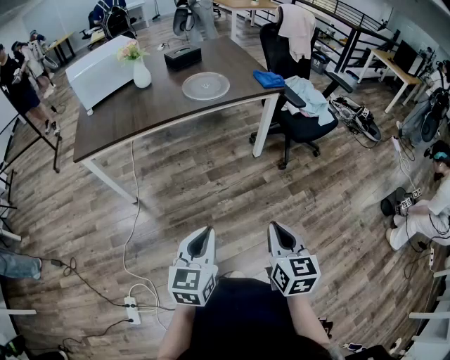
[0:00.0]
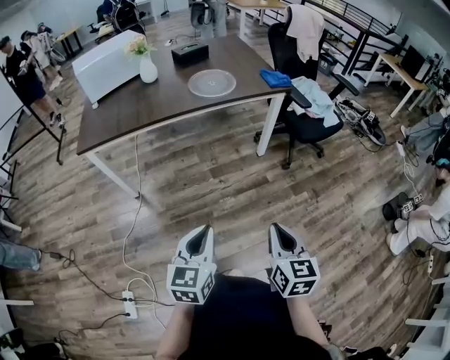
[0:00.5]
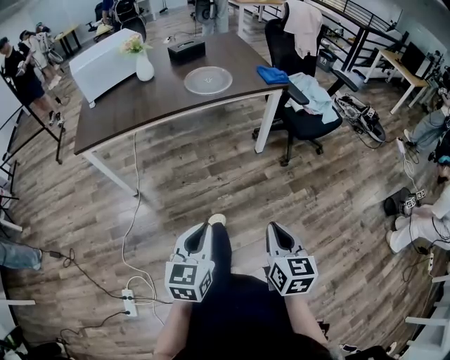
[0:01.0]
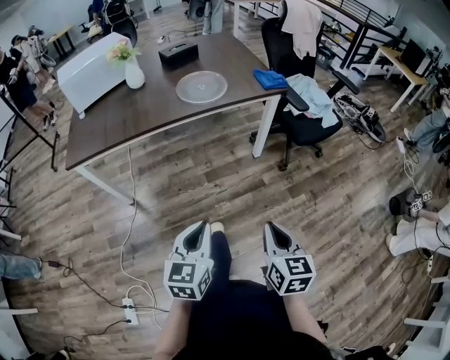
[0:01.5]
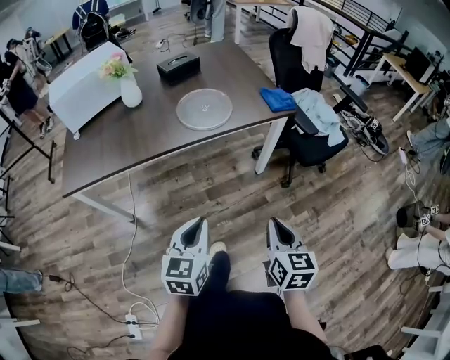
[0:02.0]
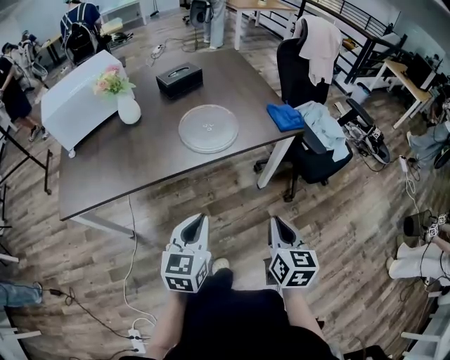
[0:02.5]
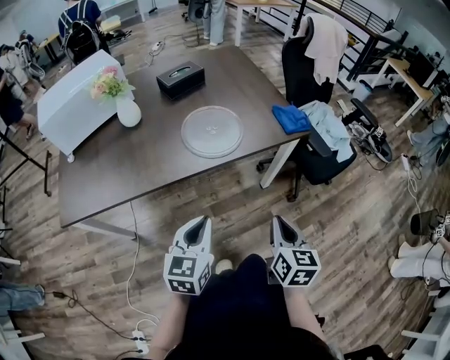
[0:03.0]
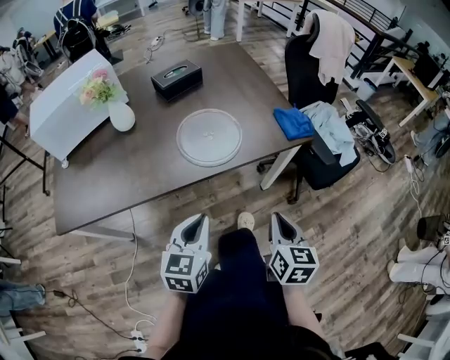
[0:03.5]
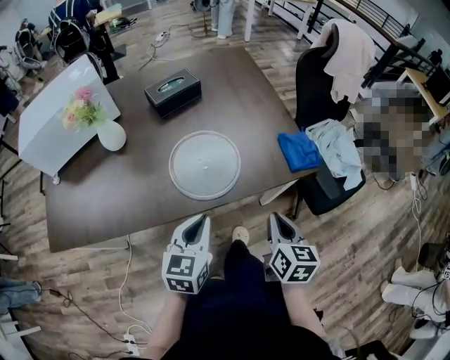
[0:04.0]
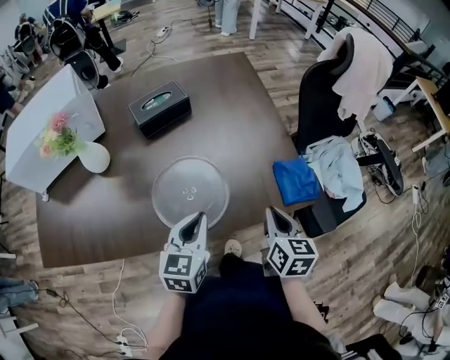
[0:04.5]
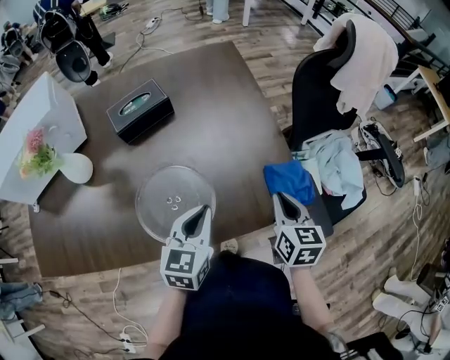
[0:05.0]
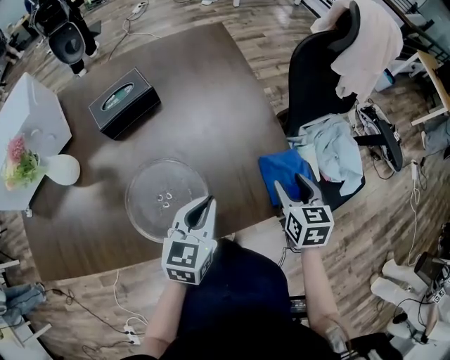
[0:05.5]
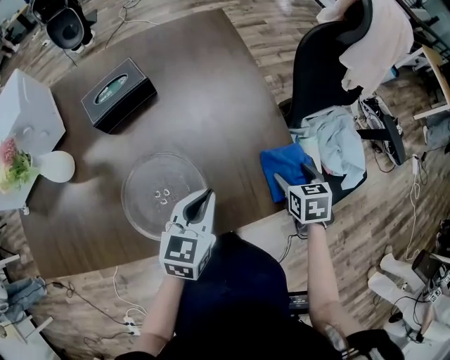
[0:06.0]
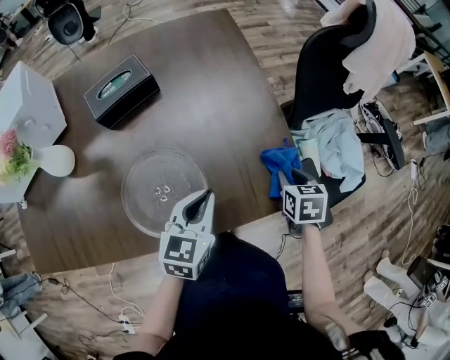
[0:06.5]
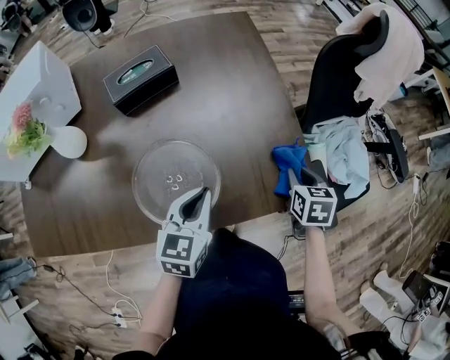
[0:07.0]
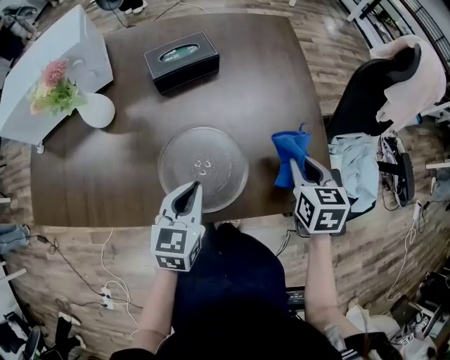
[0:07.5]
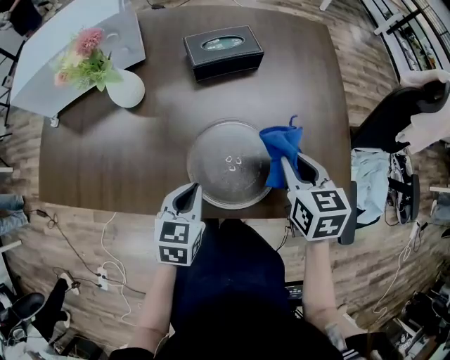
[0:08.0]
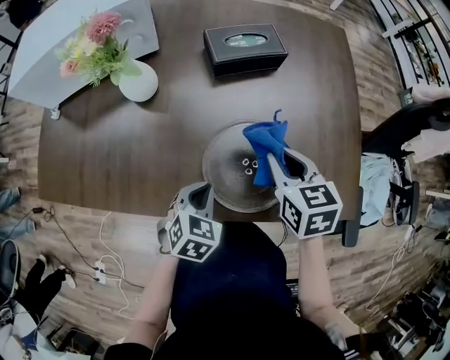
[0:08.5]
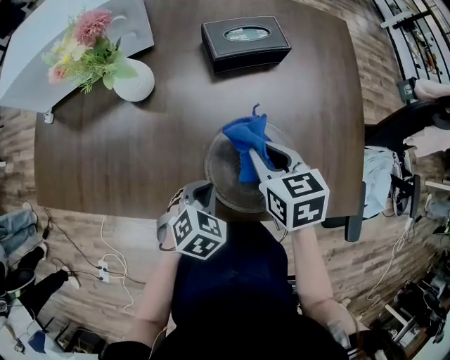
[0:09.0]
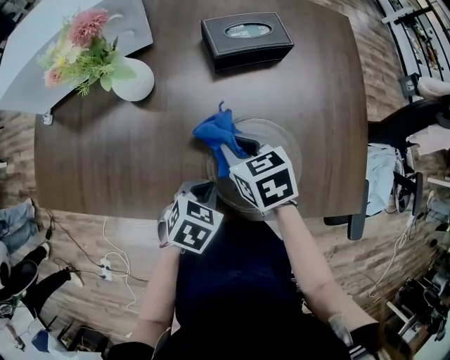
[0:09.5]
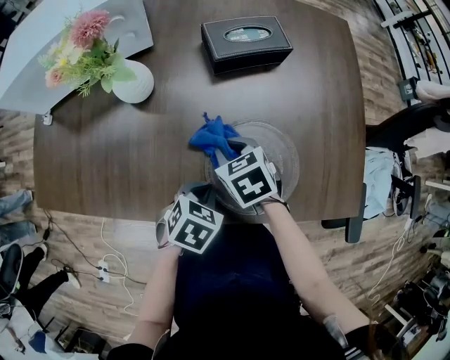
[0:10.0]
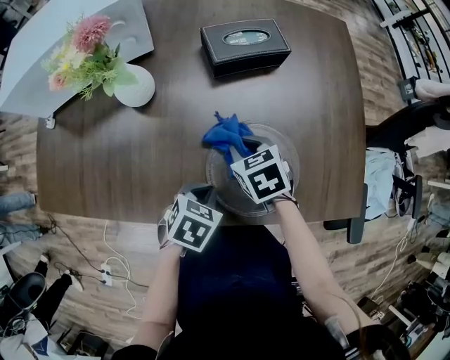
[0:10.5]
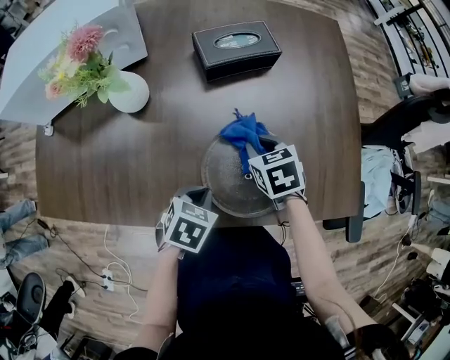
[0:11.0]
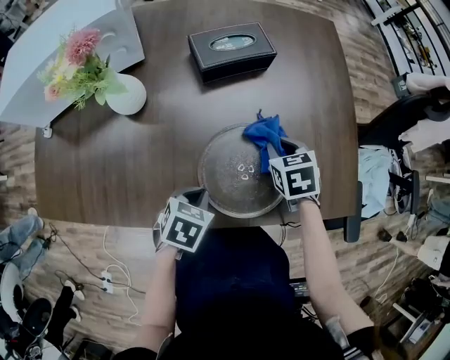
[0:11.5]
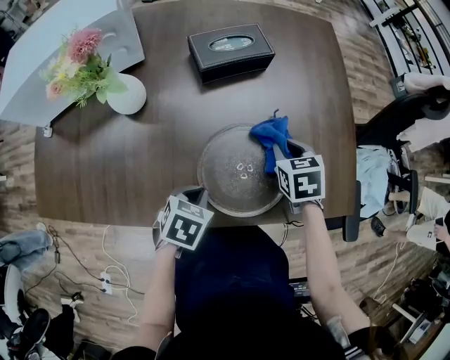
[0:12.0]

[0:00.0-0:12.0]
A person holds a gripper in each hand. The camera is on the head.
0:00.0 to 0:02.0: Both grippers move forward, some 25 cm.
0:02.0 to 0:04.0: Both grippers move forward, some 35 cm.
0:04.0 to 0:06.0: The right gripper goes some 35 cm forward, to the right and downward, changes its angle by roughly 30 degrees, and opens its fingers. The left gripper moves forward and to the right, some 25 cm.
0:06.0 to 0:08.0: The right gripper shifts roughly 30 cm to the left and upward, turns by about 30 degrees, and closes up. The left gripper moves to the left and backward, about 25 cm, and turns by approximately 30 degrees.
0:08.0 to 0:10.0: The right gripper heads to the left and downward, covering roughly 25 cm, and turns by some 30 degrees; the left gripper heads downward, covering approximately 5 cm, and swivels some 30 degrees.
0:10.0 to 0:12.0: The right gripper moves to the right, about 20 cm, and rotates approximately 20 degrees.

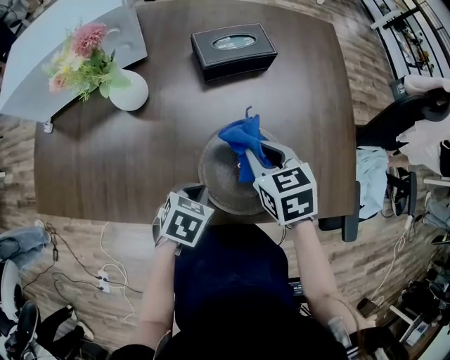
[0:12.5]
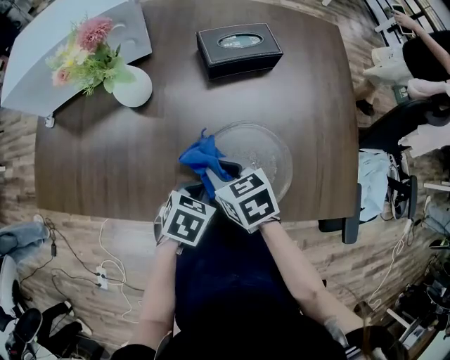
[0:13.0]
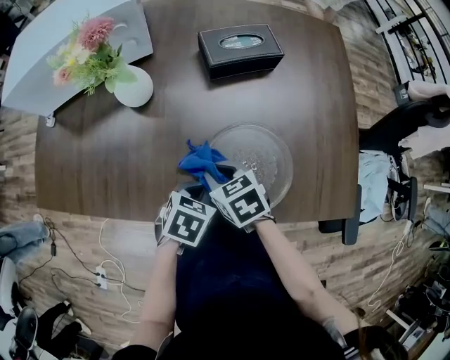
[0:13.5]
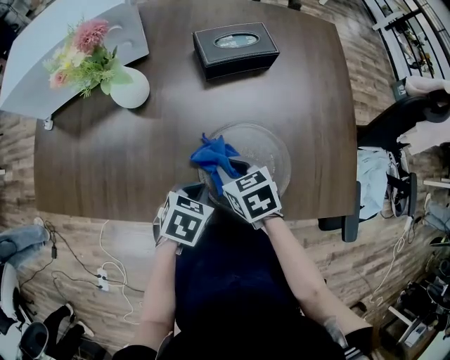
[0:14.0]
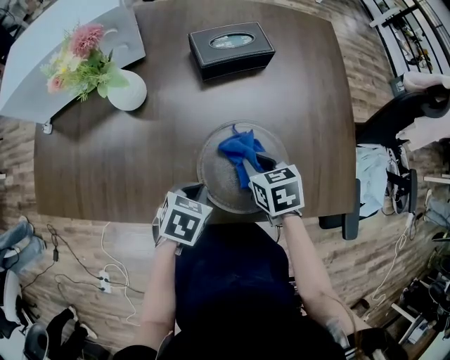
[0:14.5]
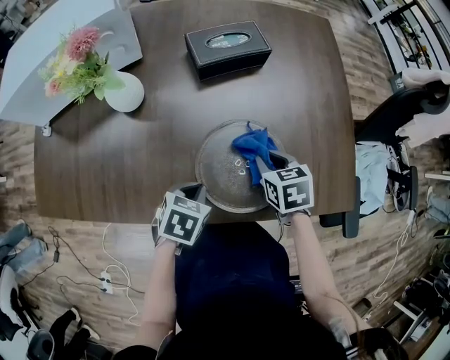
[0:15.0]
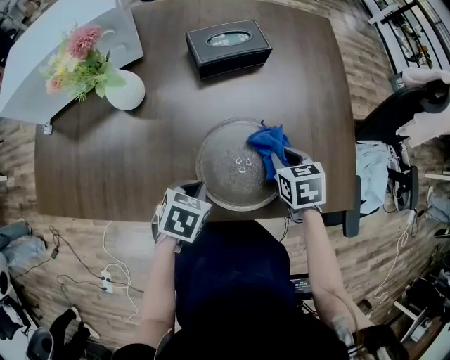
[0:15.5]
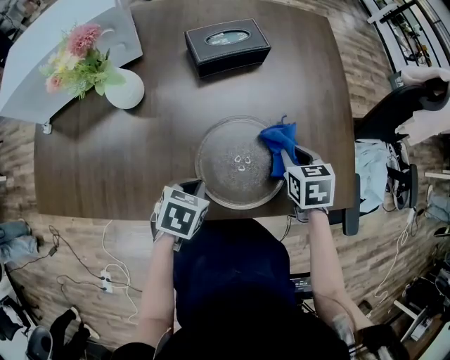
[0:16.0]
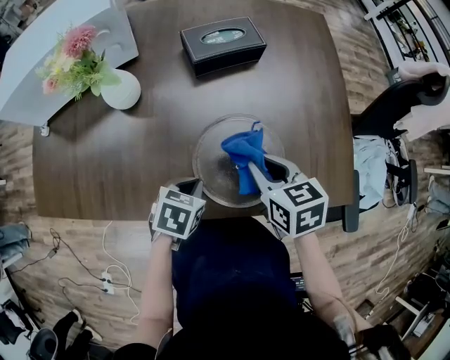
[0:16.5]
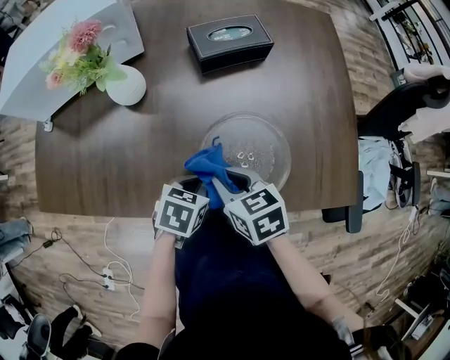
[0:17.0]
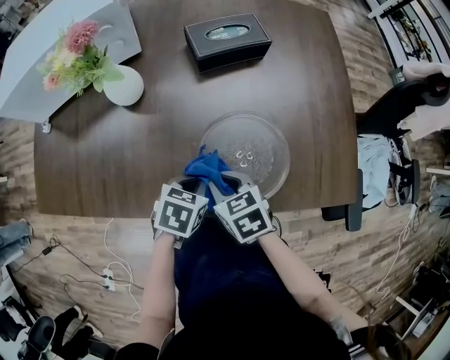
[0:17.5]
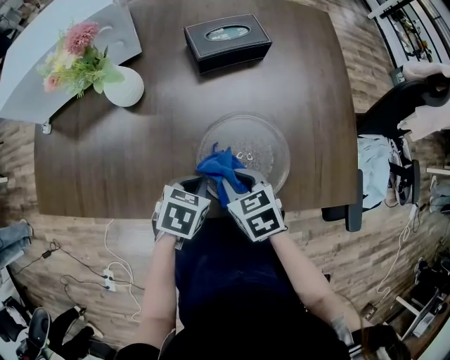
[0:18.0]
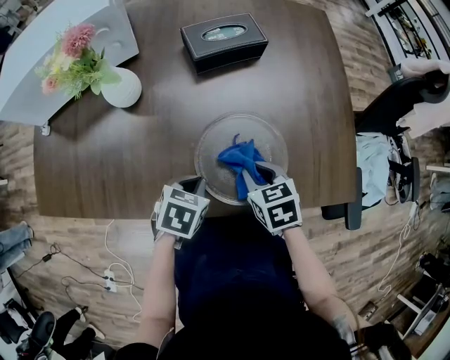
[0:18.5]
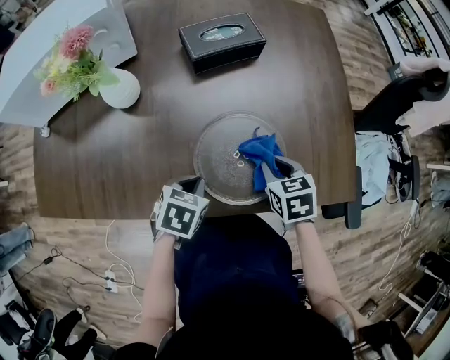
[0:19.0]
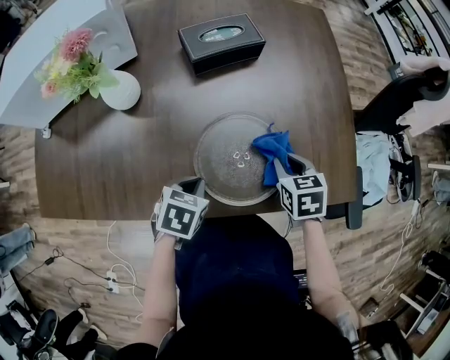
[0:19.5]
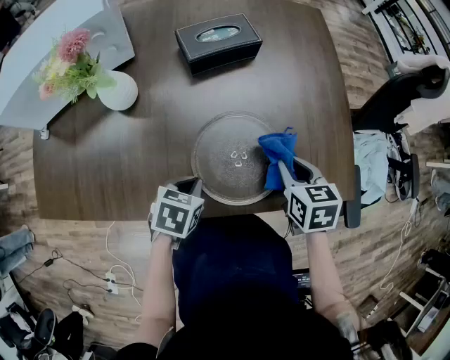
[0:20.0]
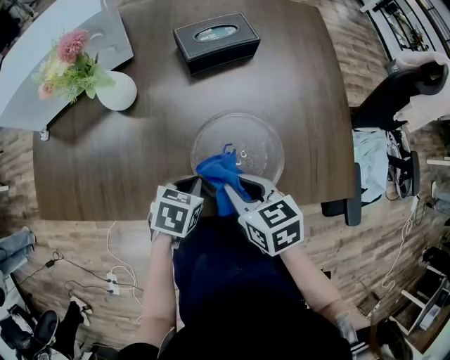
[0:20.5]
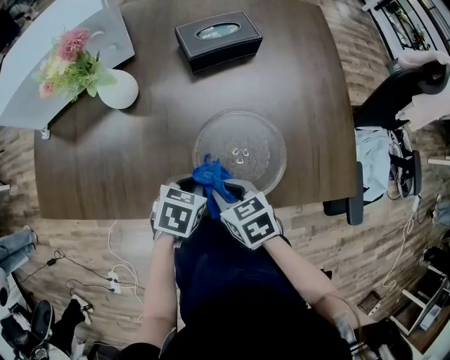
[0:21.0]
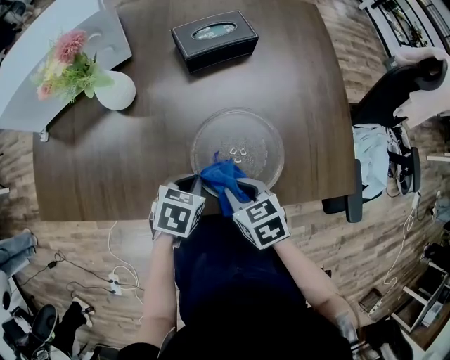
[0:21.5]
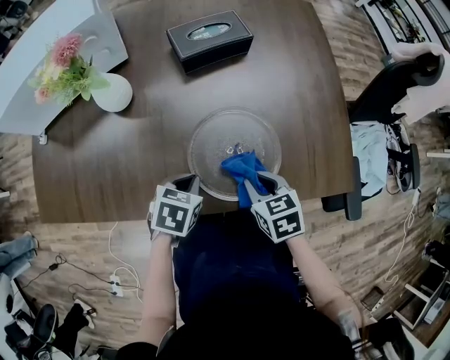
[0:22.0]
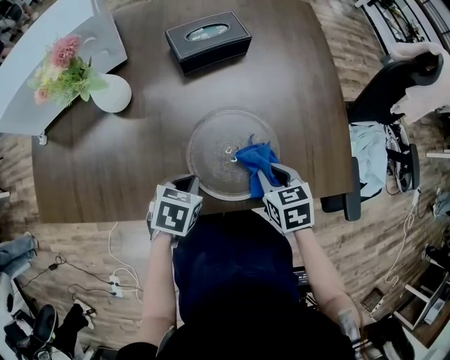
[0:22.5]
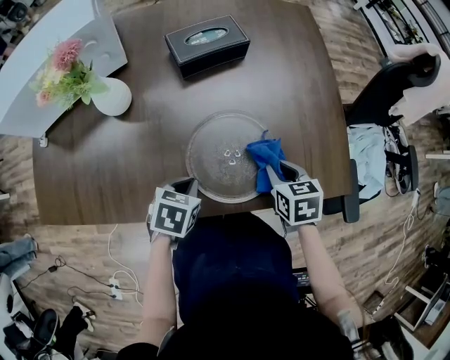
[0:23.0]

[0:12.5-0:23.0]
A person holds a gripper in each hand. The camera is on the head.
0:12.5 to 0:14.5: The right gripper heads downward, covering approximately 5 cm, and travels to the left and back again, some 10 cm each way.
0:14.5 to 0:16.5: The right gripper shifts some 10 cm upward, and moves roughly 10 cm to the right and comes back.
0:16.5 to 0:19.0: The right gripper moves downward, roughly 5 cm, and reaches some 10 cm to the left, then returns.
0:19.0 to 0:21.0: The right gripper moves to the left and backward, some 15 cm.
0:21.0 to 0:23.0: The right gripper goes some 20 cm to the right and forward, and swivels roughly 20 degrees.

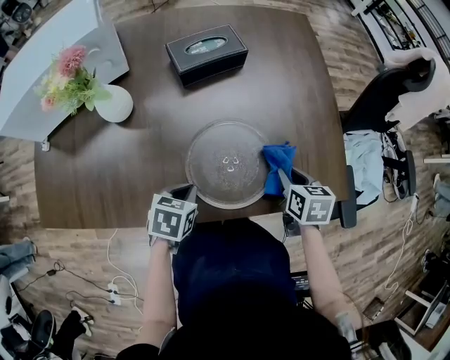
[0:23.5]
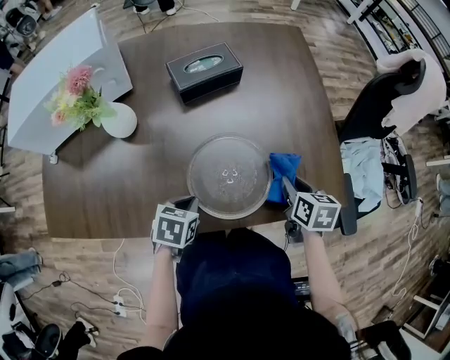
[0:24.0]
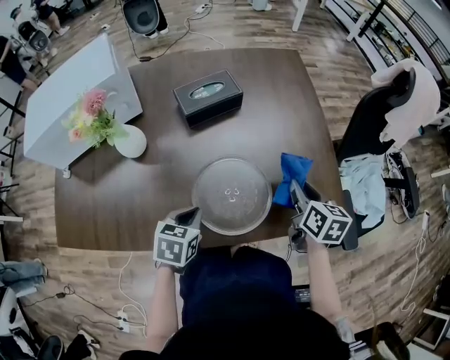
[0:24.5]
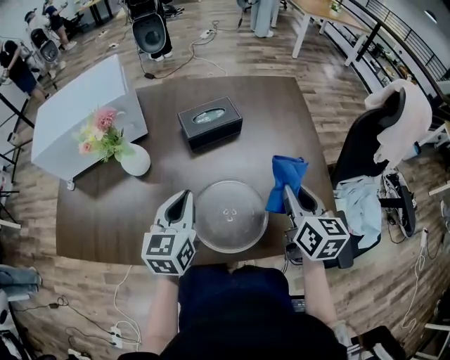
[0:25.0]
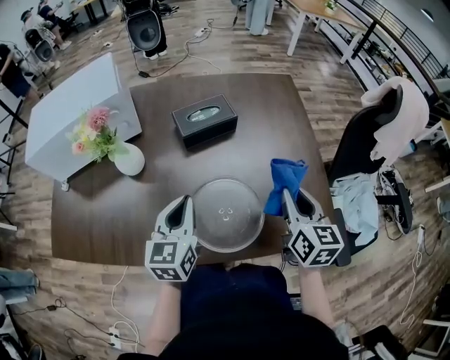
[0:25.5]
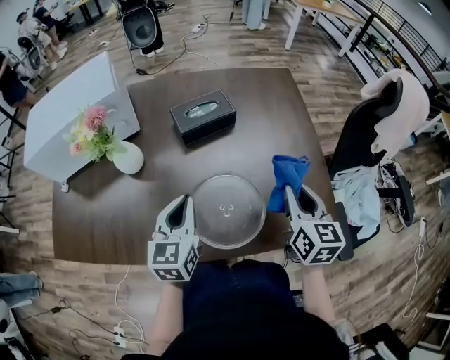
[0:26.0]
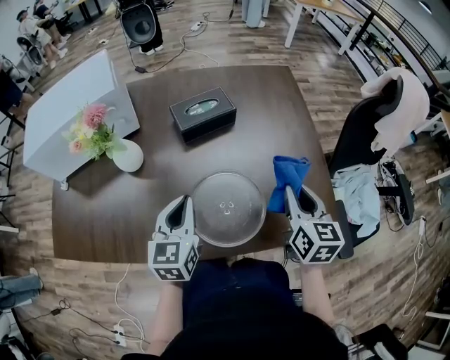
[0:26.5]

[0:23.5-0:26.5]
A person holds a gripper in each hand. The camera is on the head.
0:23.5 to 0:25.0: The right gripper is displaced upward by some 20 cm, and points its fingers roughly 30 degrees further upward; the left gripper heads upward and forward, covering approximately 20 cm, and tips its fingers upward by about 40 degrees.
0:25.0 to 0:26.5: The grippers make only small movements.

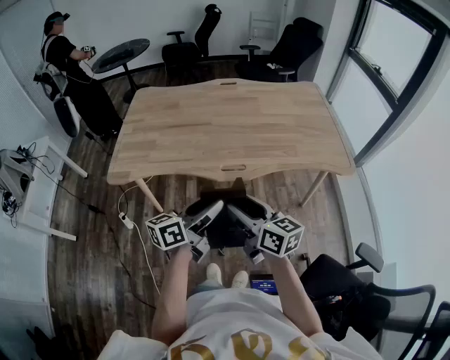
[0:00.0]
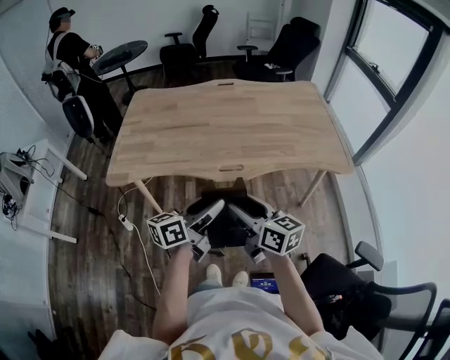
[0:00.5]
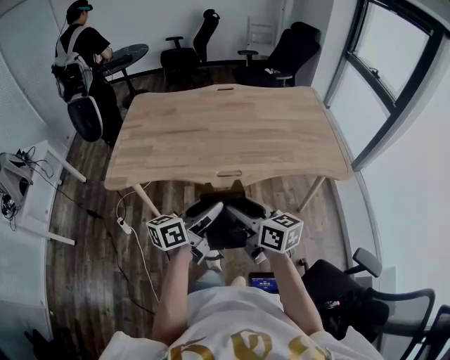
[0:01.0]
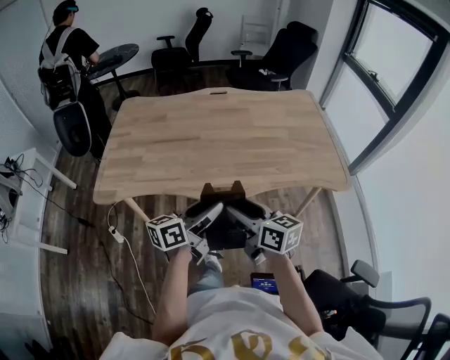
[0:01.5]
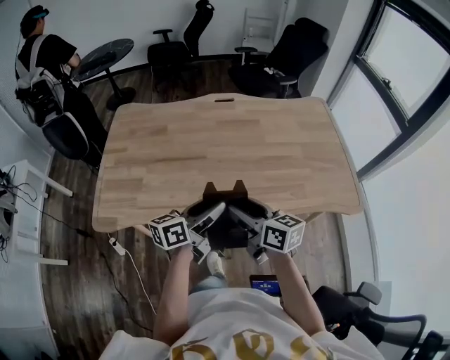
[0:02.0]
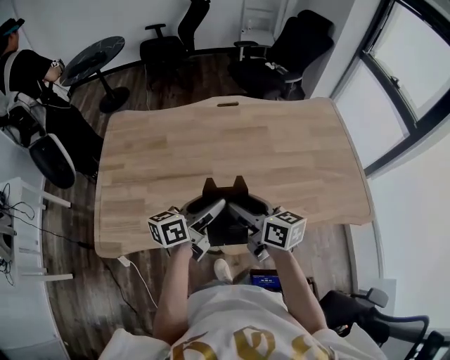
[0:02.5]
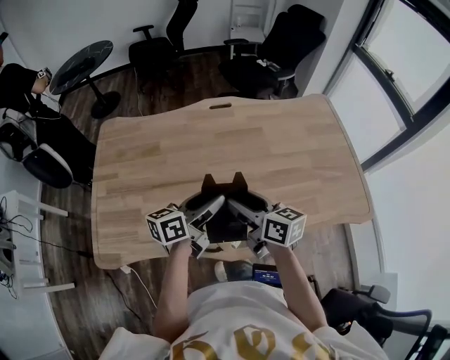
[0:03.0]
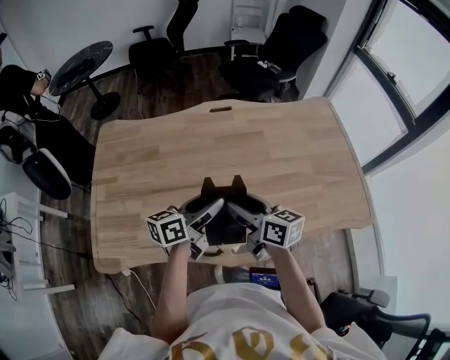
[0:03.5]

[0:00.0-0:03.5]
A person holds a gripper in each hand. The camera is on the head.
0:00.0 to 0:02.0: Both grippers move forward, some 25 cm.
0:02.0 to 0:03.5: Both grippers travel together forward, some 15 cm.
